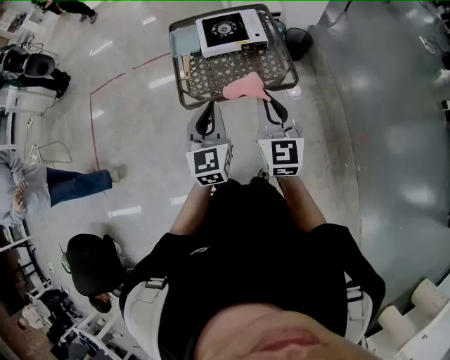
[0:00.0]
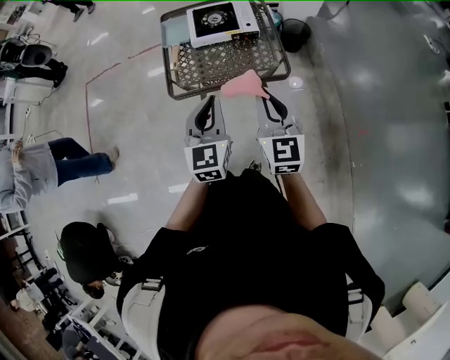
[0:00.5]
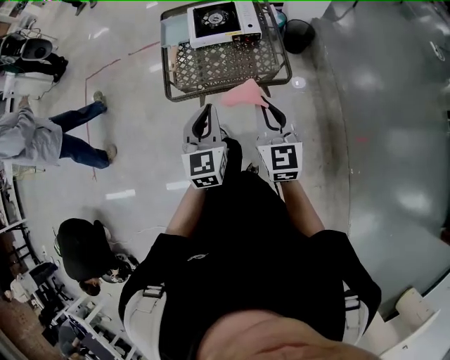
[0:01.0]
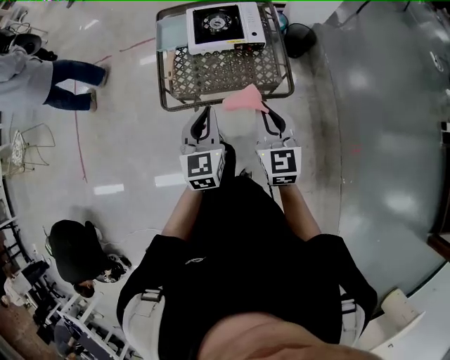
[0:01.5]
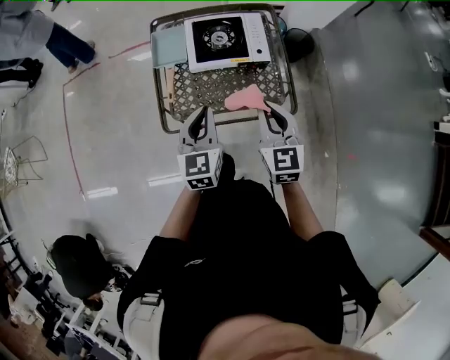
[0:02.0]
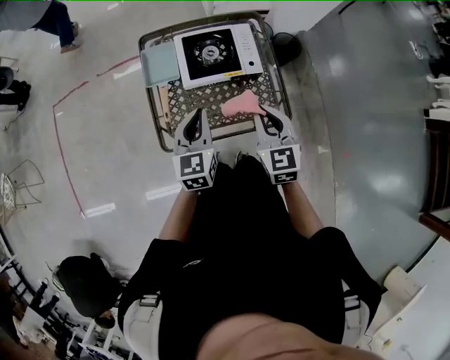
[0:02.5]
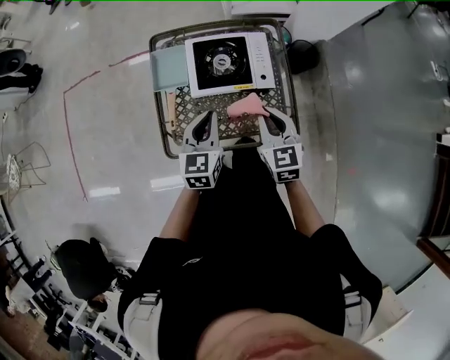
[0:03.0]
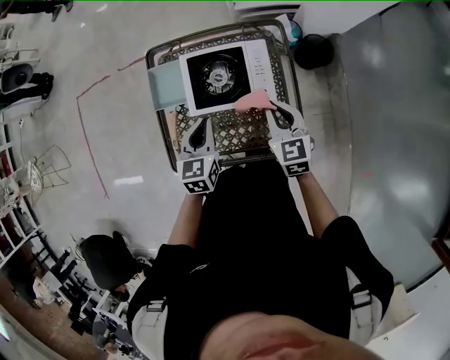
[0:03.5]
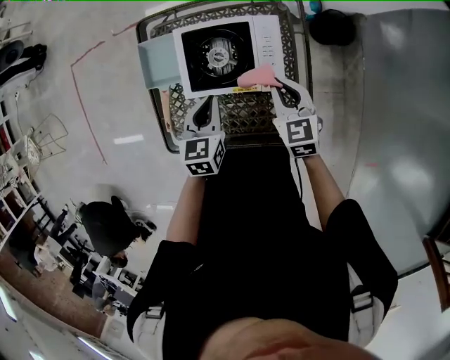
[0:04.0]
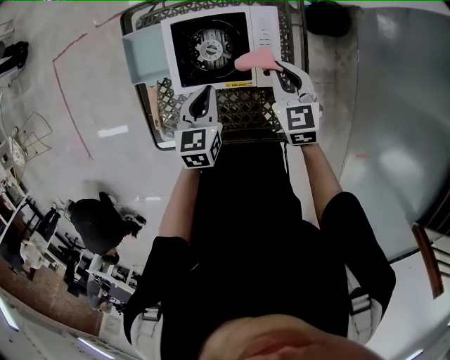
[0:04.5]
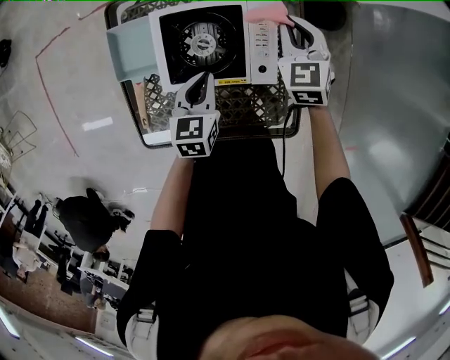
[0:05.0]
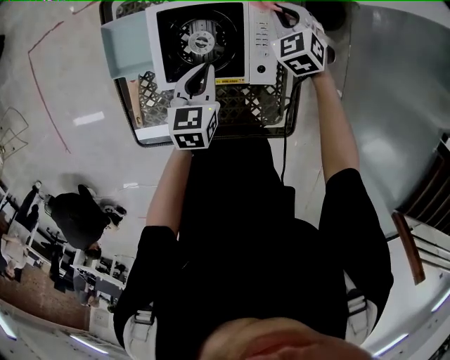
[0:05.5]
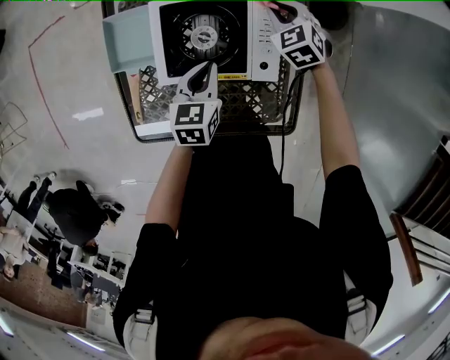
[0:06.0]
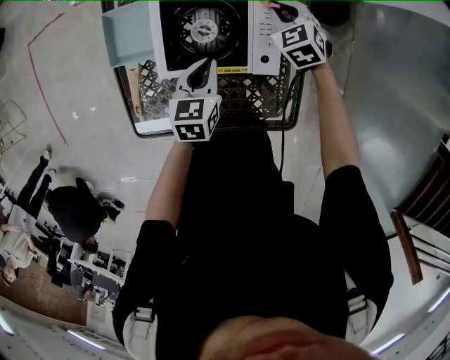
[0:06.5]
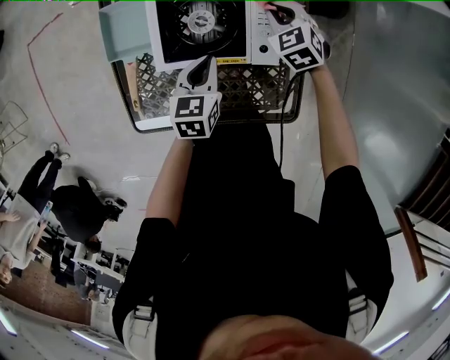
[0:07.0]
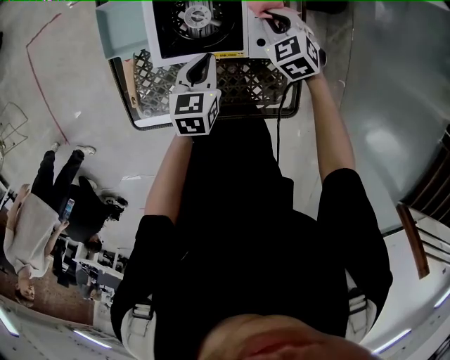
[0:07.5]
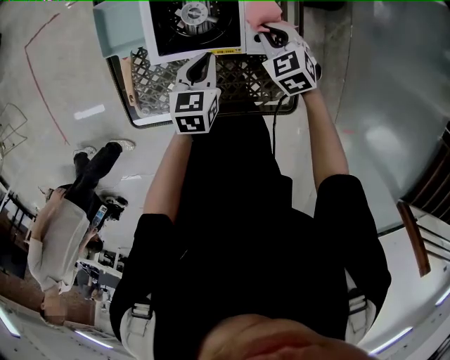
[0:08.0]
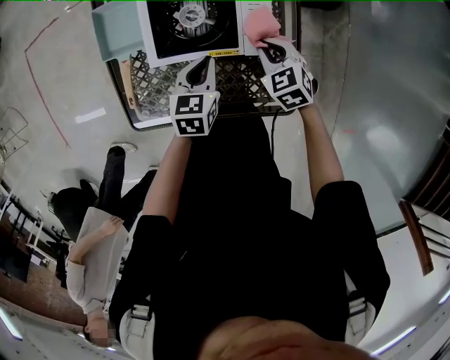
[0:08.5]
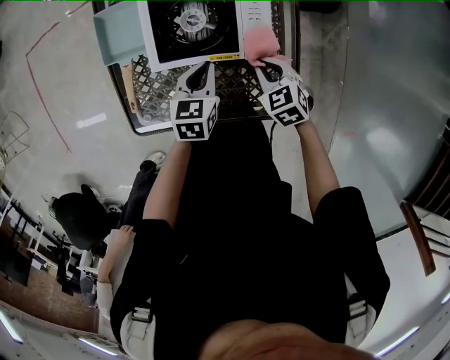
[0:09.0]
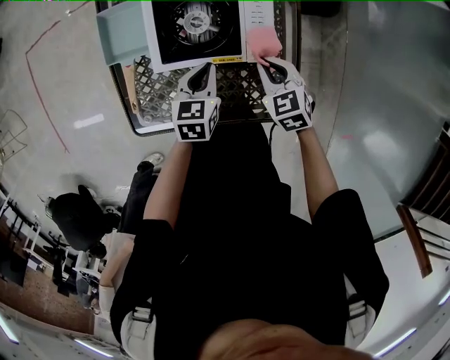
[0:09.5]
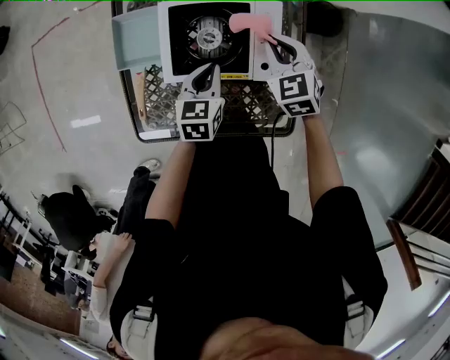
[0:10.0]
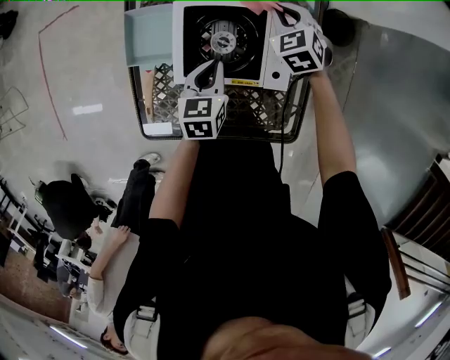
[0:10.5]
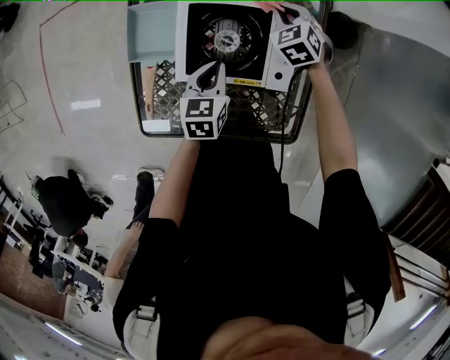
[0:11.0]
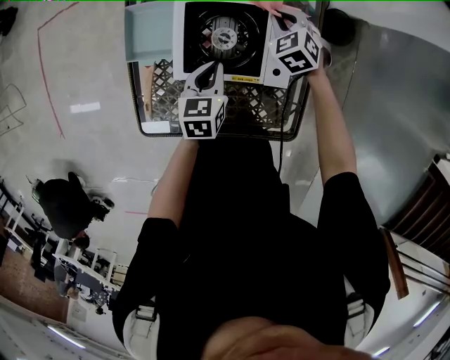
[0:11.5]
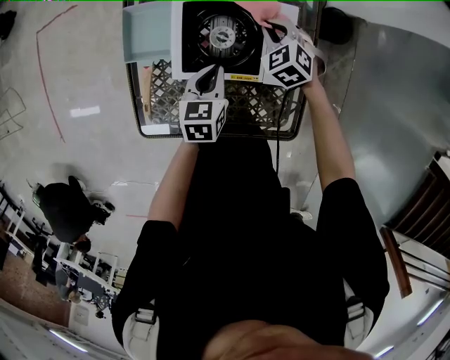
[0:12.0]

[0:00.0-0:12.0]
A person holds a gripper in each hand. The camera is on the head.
0:00.0 to 0:02.0: Both grippers travel together forward and downward, about 25 cm.
0:02.0 to 0:04.0: Both grippers move forward and downward, about 30 cm. The right gripper swivels some 20 degrees. The left gripper turns by about 20 degrees.
0:04.0 to 0:06.0: The left gripper goes about 10 cm downward; the right gripper shifts some 20 cm forward and downward, and turns by some 30 degrees.
0:06.0 to 0:08.0: The left gripper travels backward by about 5 cm. Meanwhile the right gripper heads backward, covering some 15 cm.
0:08.0 to 0:10.0: The right gripper is displaced upward and forward by about 10 cm.
0:10.0 to 0:12.0: The right gripper shifts about 5 cm downward.

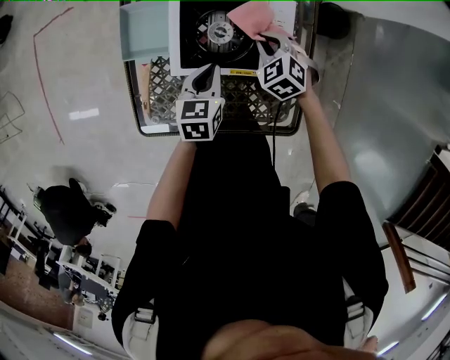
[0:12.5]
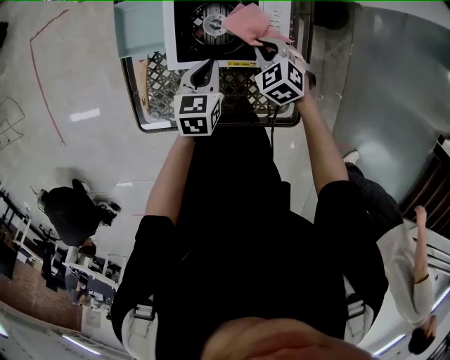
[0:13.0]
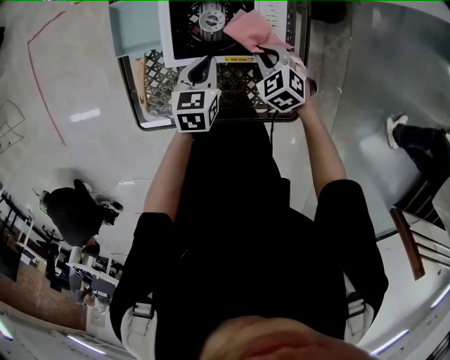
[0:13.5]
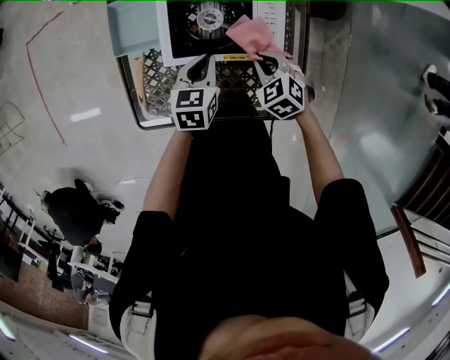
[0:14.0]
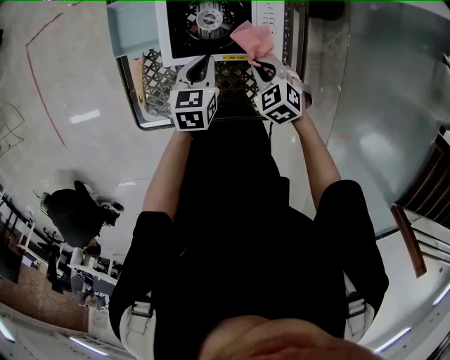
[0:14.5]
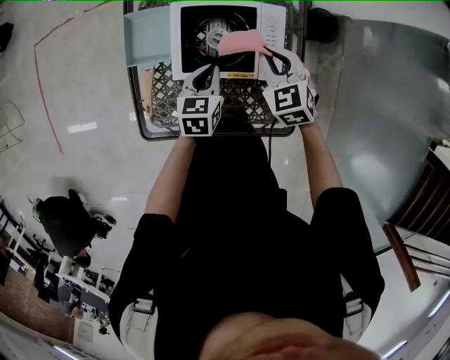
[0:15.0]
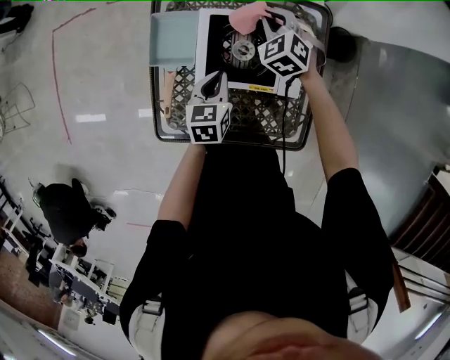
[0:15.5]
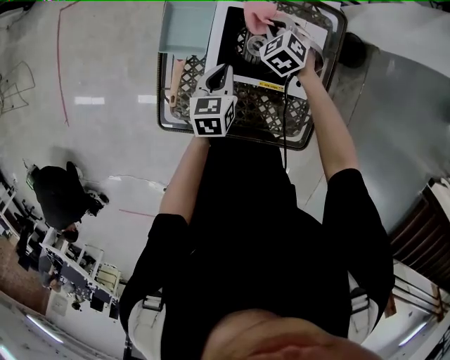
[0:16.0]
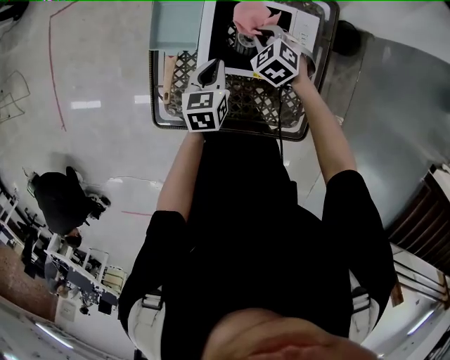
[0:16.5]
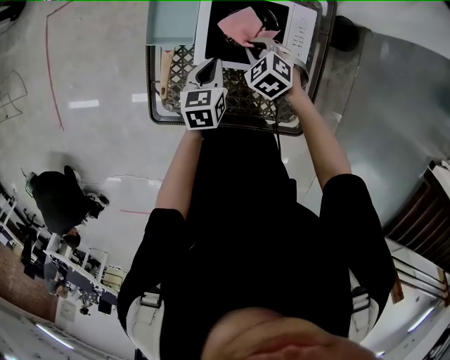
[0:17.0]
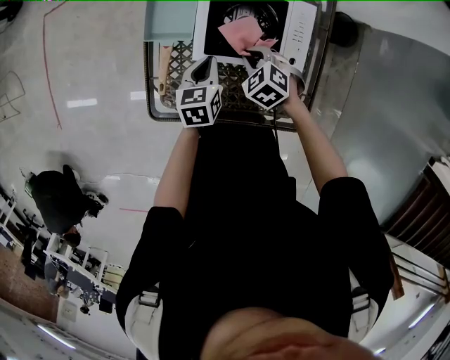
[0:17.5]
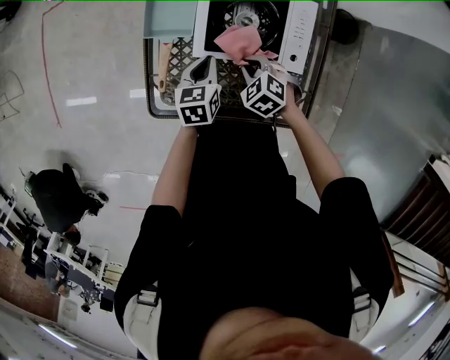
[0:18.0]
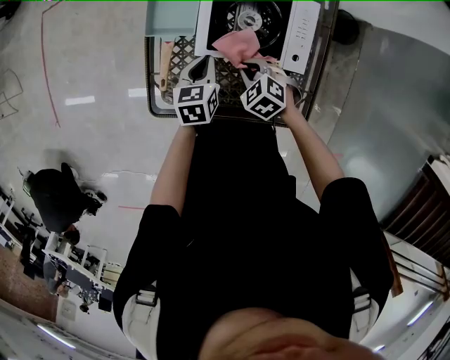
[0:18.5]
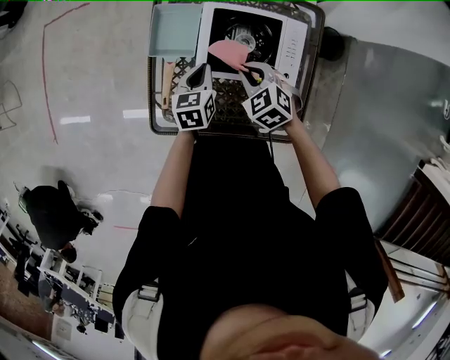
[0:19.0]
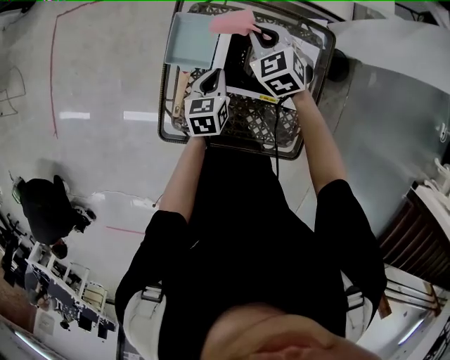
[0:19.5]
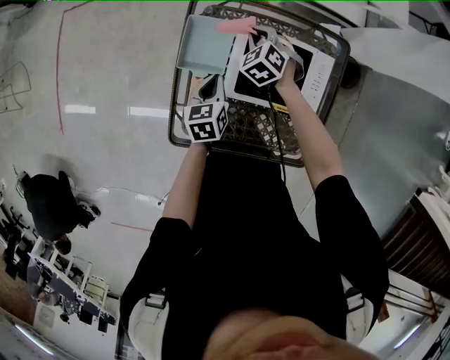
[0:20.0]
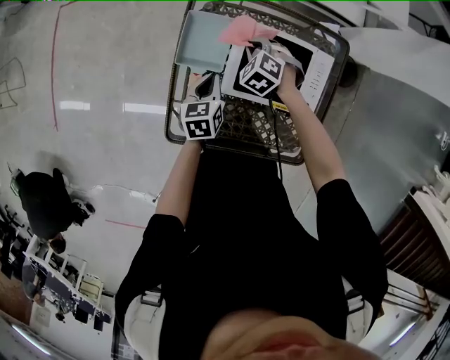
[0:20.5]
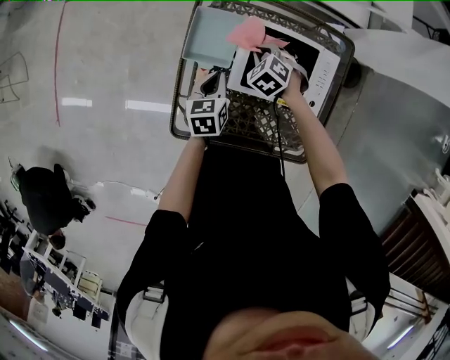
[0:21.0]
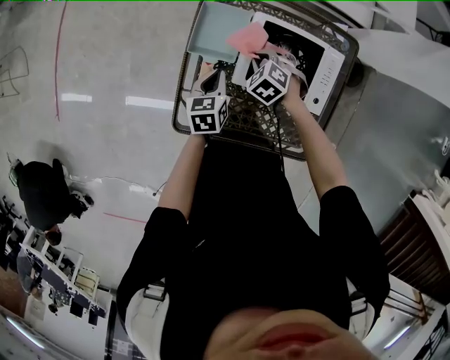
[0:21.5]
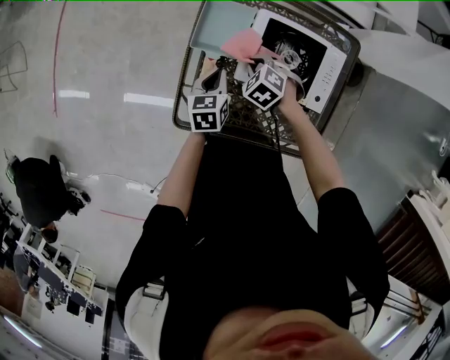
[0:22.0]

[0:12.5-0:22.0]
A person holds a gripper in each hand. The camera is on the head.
0:12.5 to 0:14.5: The right gripper goes some 10 cm backward.
0:14.5 to 0:16.5: The left gripper shifts about 5 cm to the left; the right gripper heads forward and to the left, covering approximately 20 cm.
0:16.5 to 0:18.0: The right gripper is displaced backward by some 15 cm.
0:18.0 to 0:20.0: The right gripper moves forward, about 25 cm. The left gripper goes about 10 cm forward and to the left.
0:20.0 to 0:22.0: The left gripper shifts by some 5 cm. The right gripper goes approximately 15 cm backward, and changes its angle by some 20 degrees.

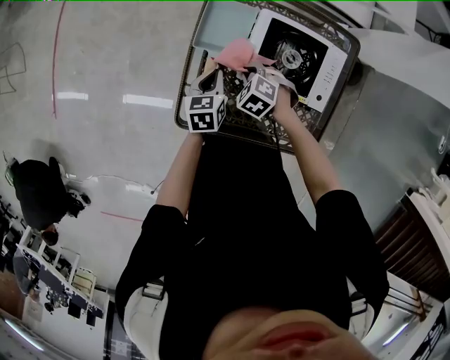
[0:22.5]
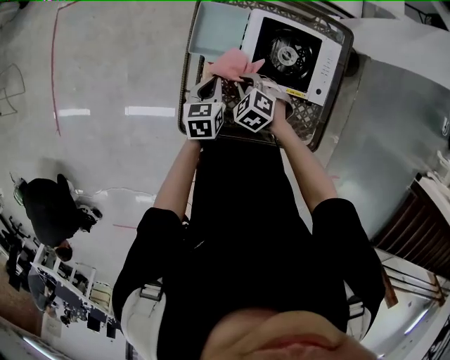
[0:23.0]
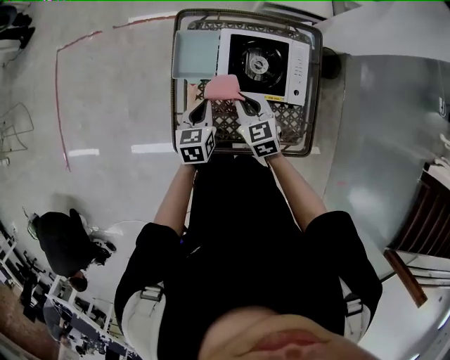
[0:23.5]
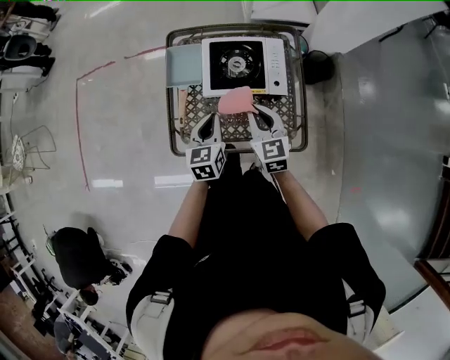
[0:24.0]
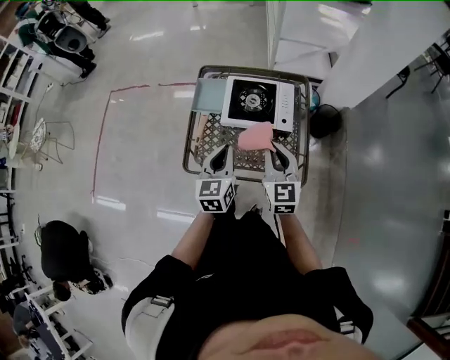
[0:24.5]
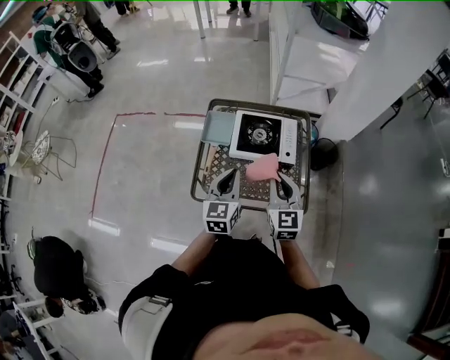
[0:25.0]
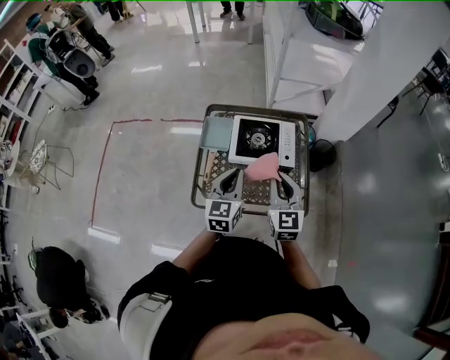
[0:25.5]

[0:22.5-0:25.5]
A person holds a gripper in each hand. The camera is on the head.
0:22.5 to 0:24.0: The left gripper is displaced upward, backward and to the right by about 20 cm, and turns by about 20 degrees, while the right gripper moves upward, to the right and backward, about 30 cm, and tilts its fingers about 50 degrees upward.
0:24.0 to 0:25.5: The right gripper travels upward and backward by about 15 cm; the left gripper travels upward by roughly 15 cm.

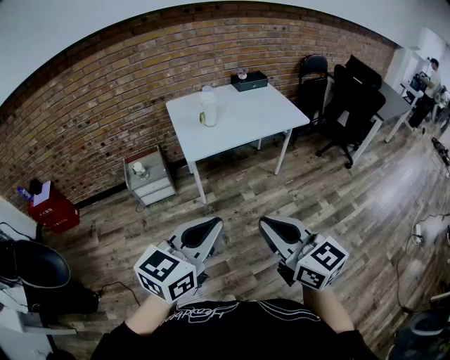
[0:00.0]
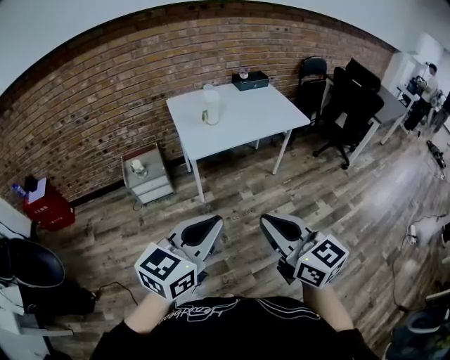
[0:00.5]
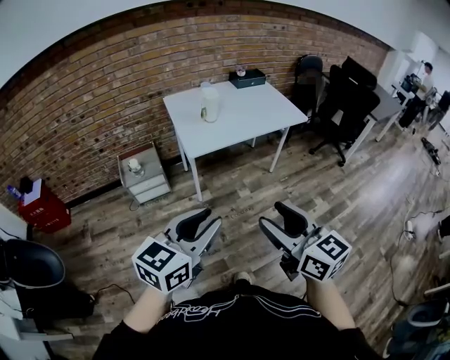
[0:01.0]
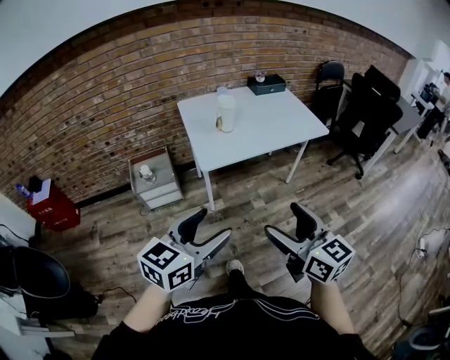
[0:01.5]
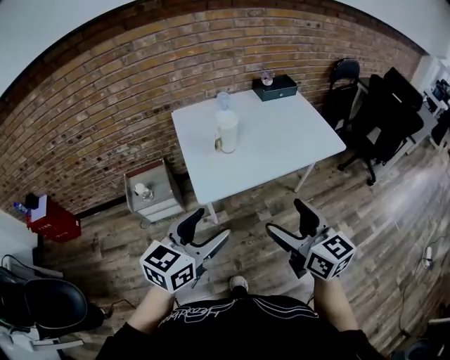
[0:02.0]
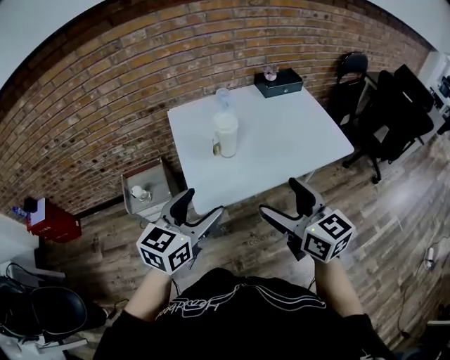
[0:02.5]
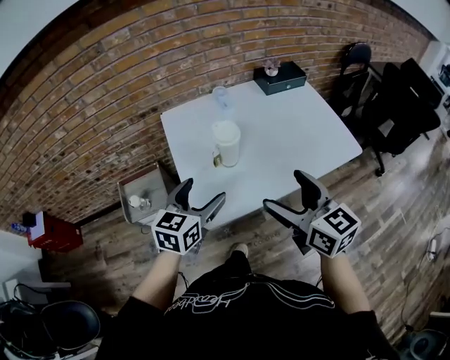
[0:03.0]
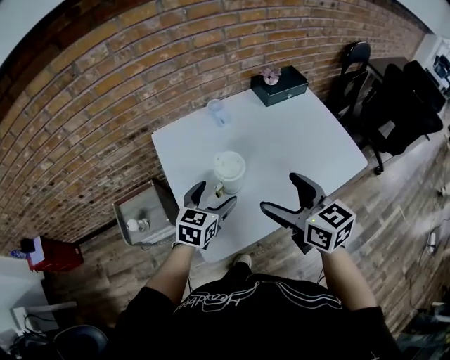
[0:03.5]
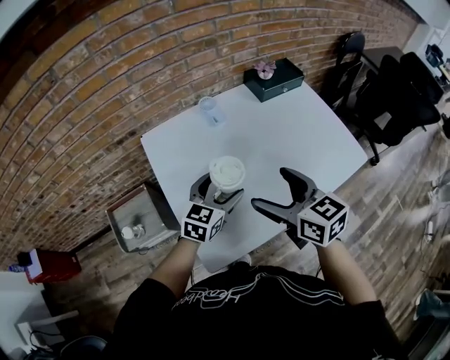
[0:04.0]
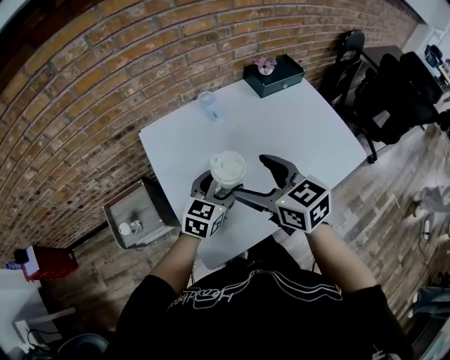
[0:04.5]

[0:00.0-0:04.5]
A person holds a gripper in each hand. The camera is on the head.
0:00.0 to 0:02.0: Both grippers move forward, roughly 30 cm. The right gripper opens up, while the left gripper opens up.
0:02.0 to 0:04.5: The right gripper shifts approximately 35 cm forward; the left gripper travels forward and downward by roughly 40 cm.
